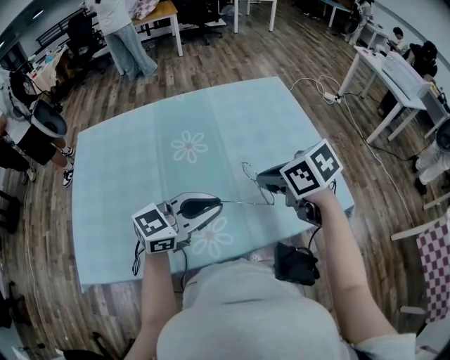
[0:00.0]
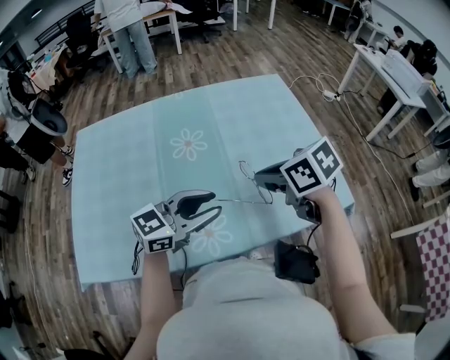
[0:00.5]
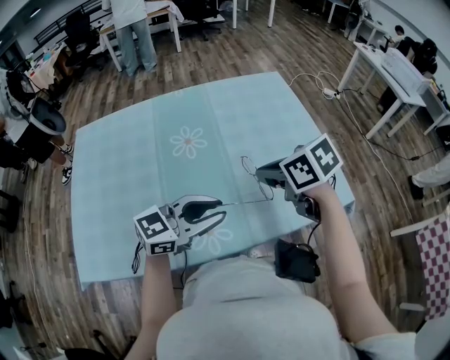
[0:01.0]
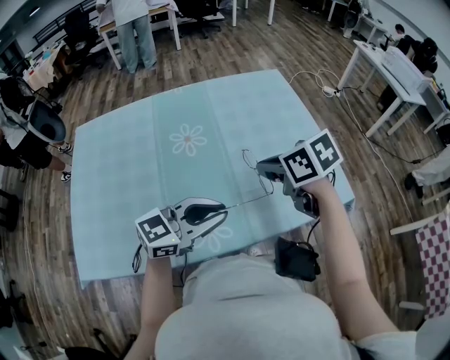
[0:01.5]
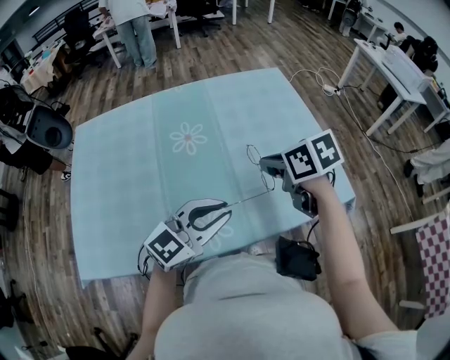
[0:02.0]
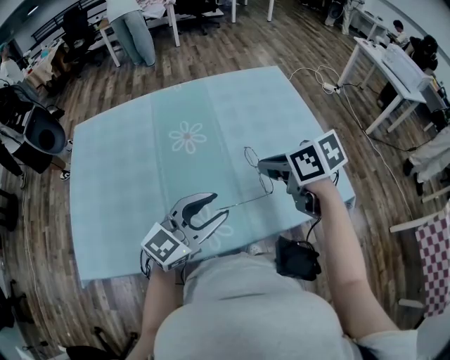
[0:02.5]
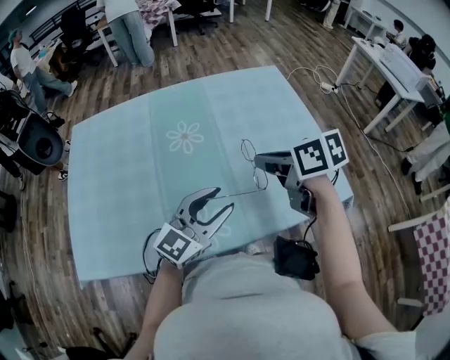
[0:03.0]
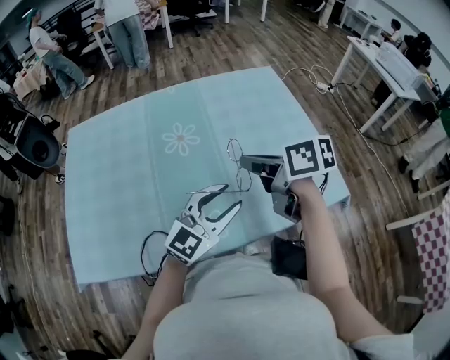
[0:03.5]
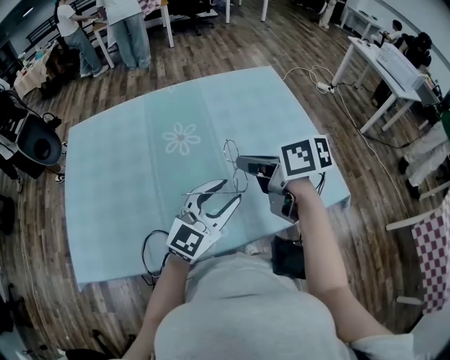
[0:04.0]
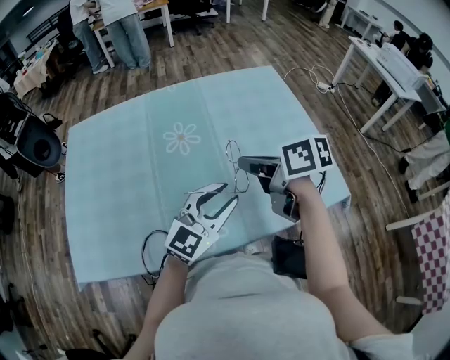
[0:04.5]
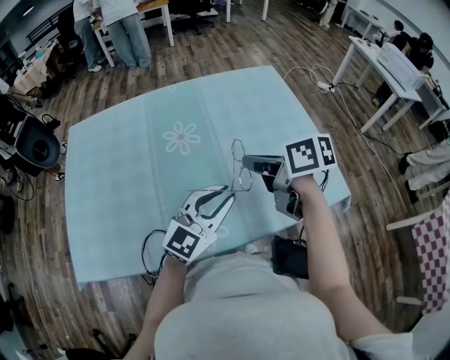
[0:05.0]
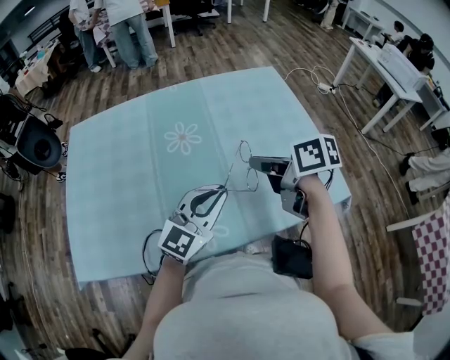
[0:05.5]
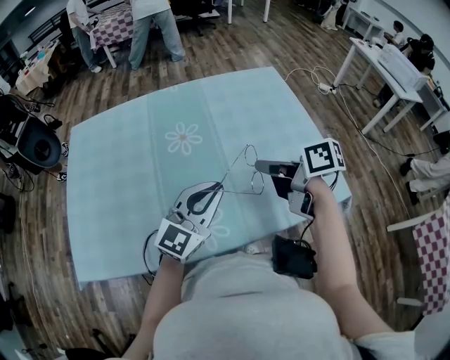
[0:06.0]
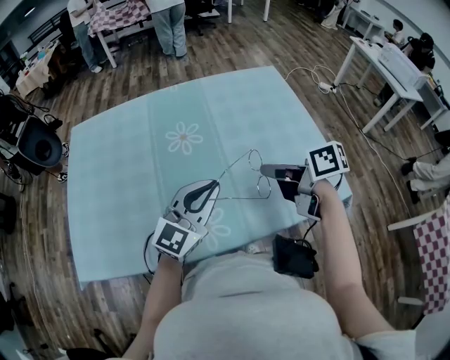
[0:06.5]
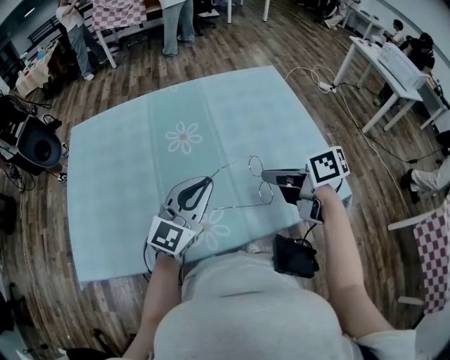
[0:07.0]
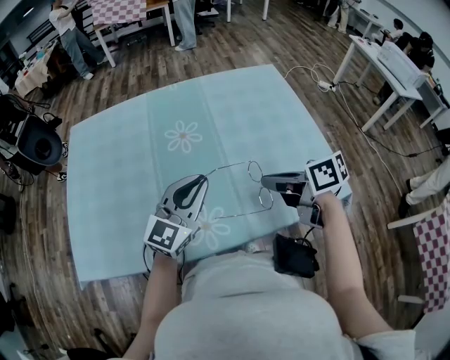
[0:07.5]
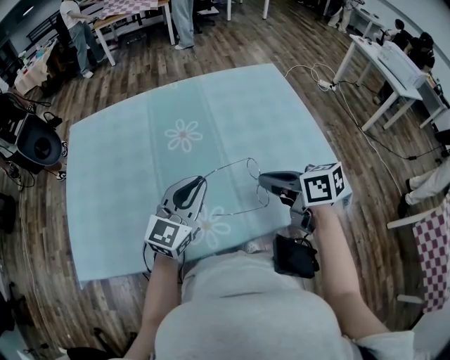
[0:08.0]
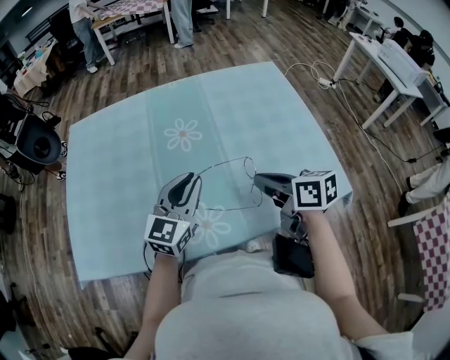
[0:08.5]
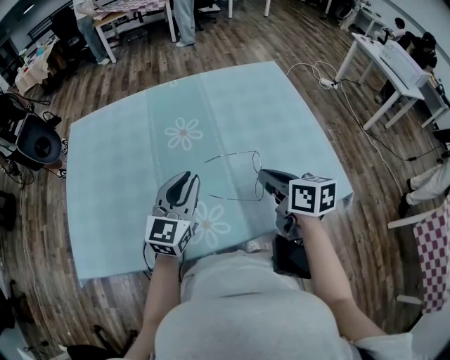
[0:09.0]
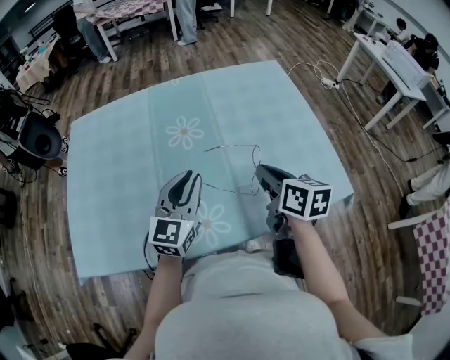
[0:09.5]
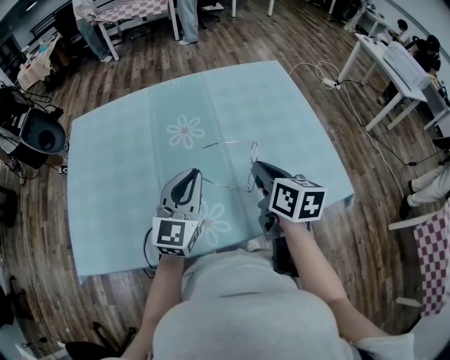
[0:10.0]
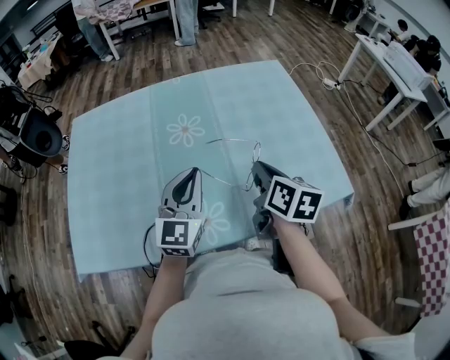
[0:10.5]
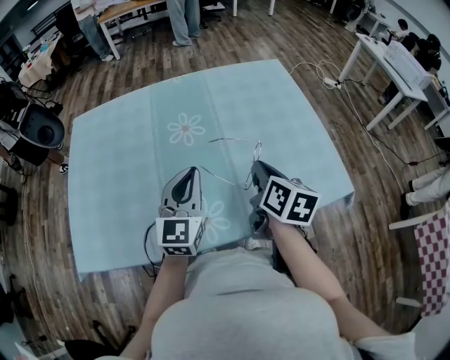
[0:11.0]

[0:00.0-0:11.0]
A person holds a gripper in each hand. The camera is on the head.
0:00.0 to 0:02.0: The grippers make only small movements.
0:02.0 to 0:03.5: The left gripper changes place by some 5 cm, and opens, while the right gripper swivels about 20 degrees.
0:03.5 to 0:05.5: The left gripper closes its fingers.
0:05.5 to 0:07.5: The left gripper moves roughly 5 cm. The right gripper heads backward, covering some 5 cm.
0:07.5 to 0:09.0: The right gripper turns by some 30 degrees.
0:09.0 to 0:11.0: The right gripper turns by approximately 20 degrees.
